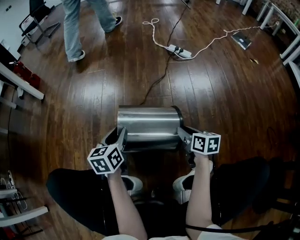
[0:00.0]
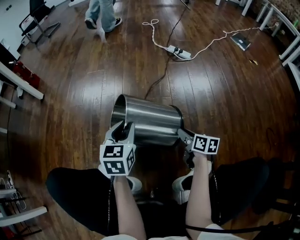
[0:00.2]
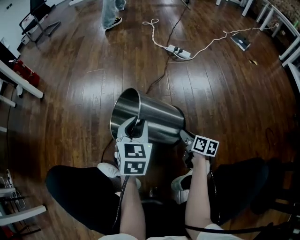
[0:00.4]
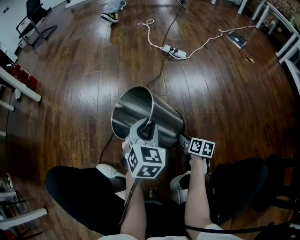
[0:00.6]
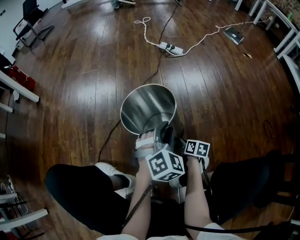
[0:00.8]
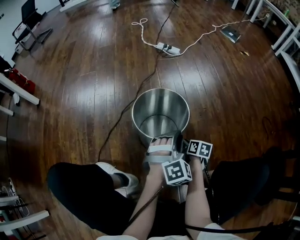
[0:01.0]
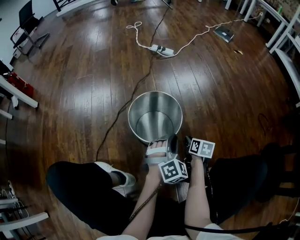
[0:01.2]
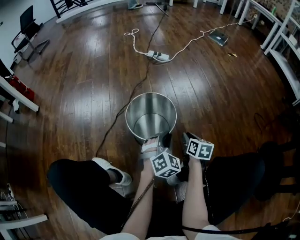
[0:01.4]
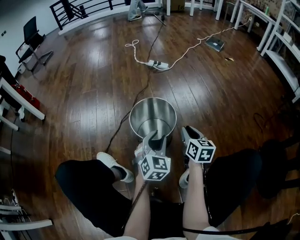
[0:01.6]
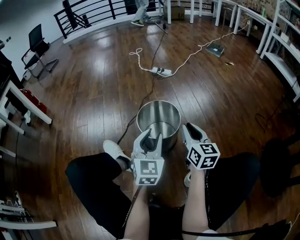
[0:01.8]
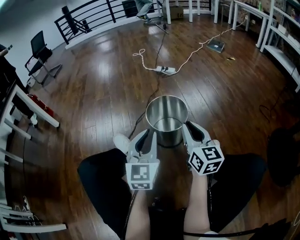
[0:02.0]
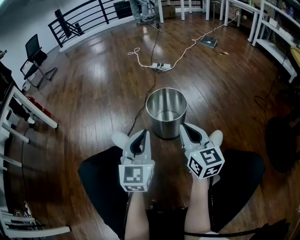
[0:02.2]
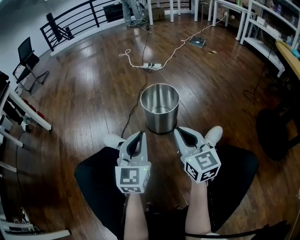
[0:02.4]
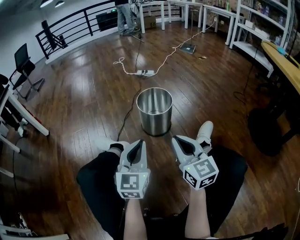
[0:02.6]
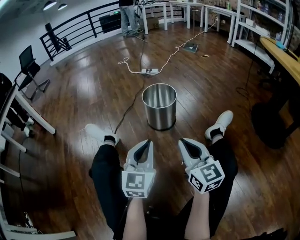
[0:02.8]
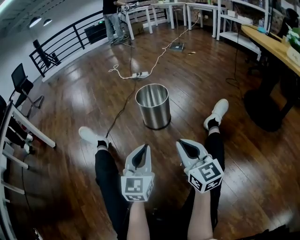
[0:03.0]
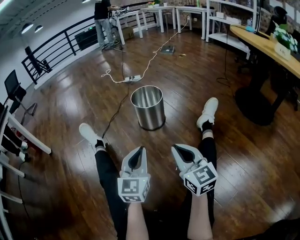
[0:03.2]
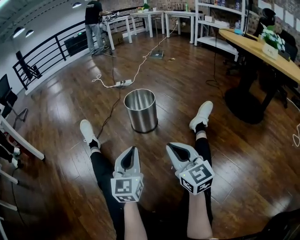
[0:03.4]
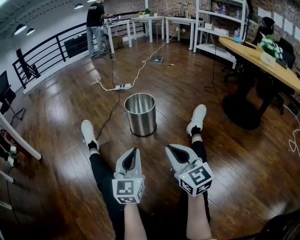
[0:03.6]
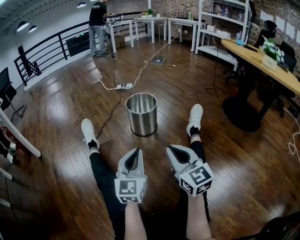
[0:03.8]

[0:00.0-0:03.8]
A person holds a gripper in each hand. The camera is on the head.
0.0 to 1.2 s: The right gripper heads to the right, backward and downward, covering approximately 20 cm, and turns by approximately 30 degrees. Meanwhile the left gripper is displaced to the right and backward by approximately 30 cm, and twists about 80 degrees clockwise, seen from behind.
1.2 to 2.6 s: The left gripper shifts roughly 40 cm backward, upward and to the left, and angles its fingers upward, by roughly 30 degrees. Meanwhile the right gripper goes about 50 cm upward, backward and to the left, and points its fingers about 50 degrees further upward.
2.6 to 3.8 s: The left gripper moves backward and to the left, about 15 cm. Meanwhile the right gripper travels backward by about 15 cm.

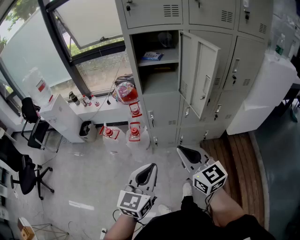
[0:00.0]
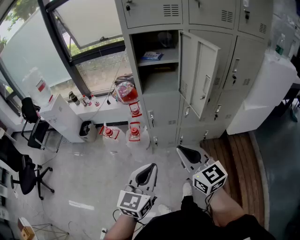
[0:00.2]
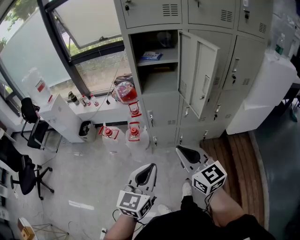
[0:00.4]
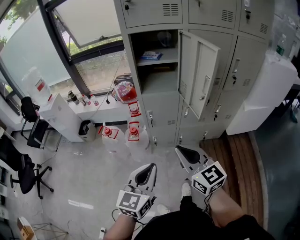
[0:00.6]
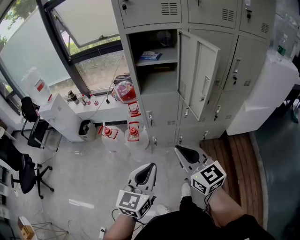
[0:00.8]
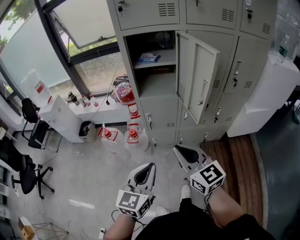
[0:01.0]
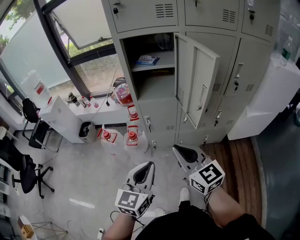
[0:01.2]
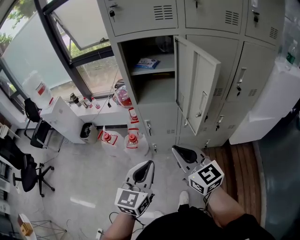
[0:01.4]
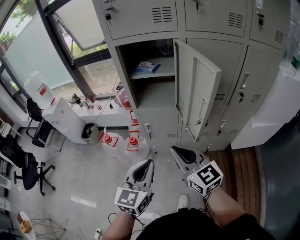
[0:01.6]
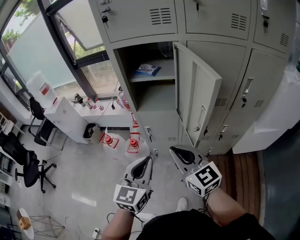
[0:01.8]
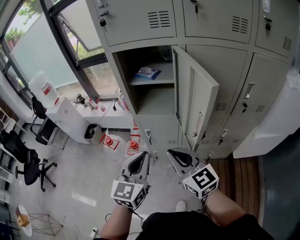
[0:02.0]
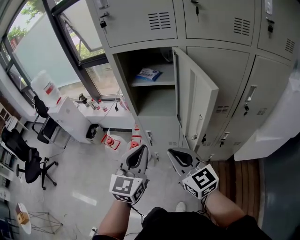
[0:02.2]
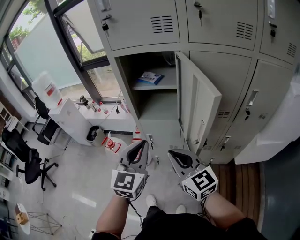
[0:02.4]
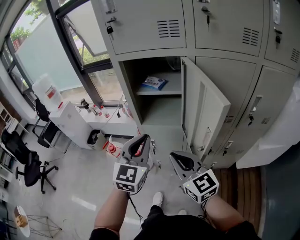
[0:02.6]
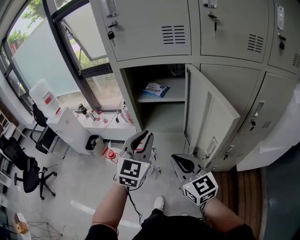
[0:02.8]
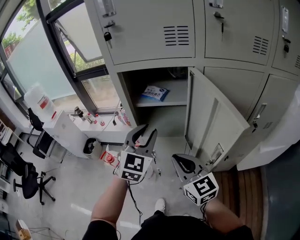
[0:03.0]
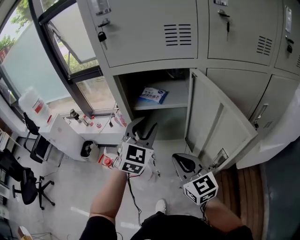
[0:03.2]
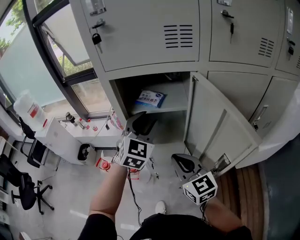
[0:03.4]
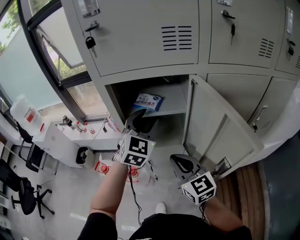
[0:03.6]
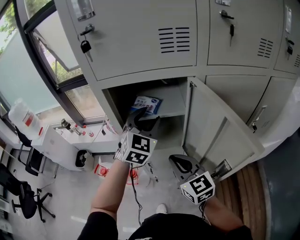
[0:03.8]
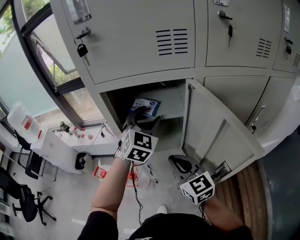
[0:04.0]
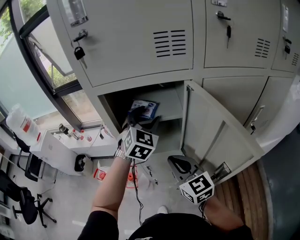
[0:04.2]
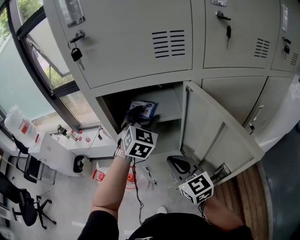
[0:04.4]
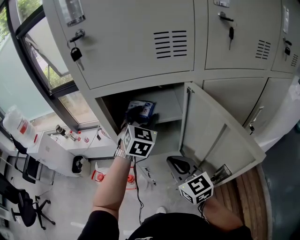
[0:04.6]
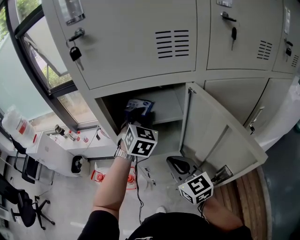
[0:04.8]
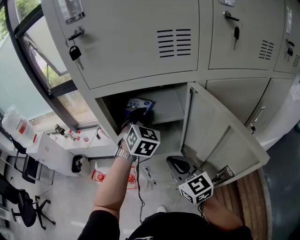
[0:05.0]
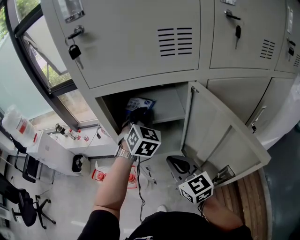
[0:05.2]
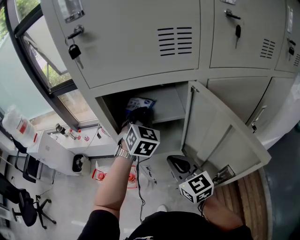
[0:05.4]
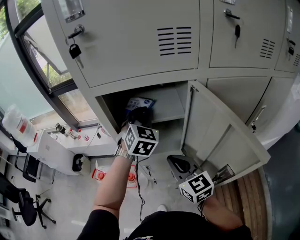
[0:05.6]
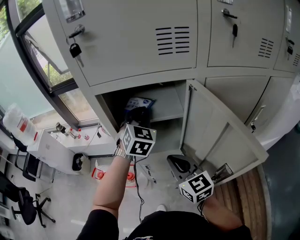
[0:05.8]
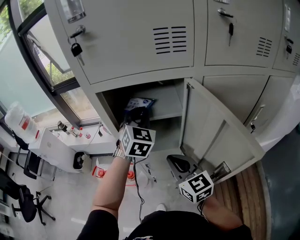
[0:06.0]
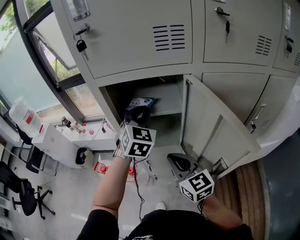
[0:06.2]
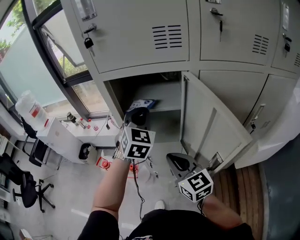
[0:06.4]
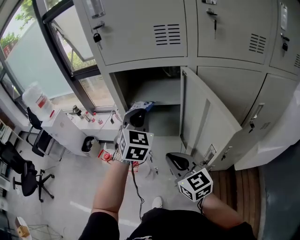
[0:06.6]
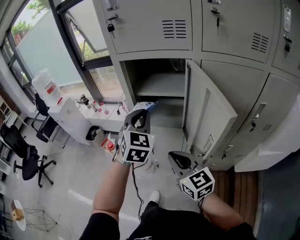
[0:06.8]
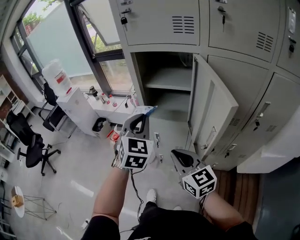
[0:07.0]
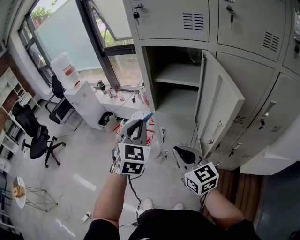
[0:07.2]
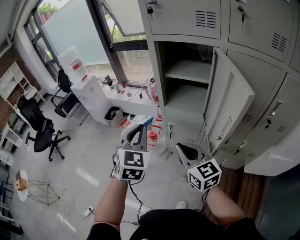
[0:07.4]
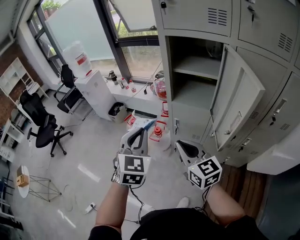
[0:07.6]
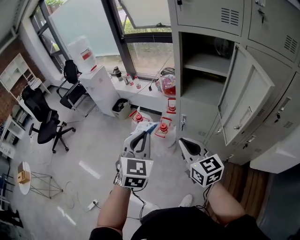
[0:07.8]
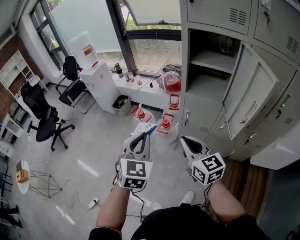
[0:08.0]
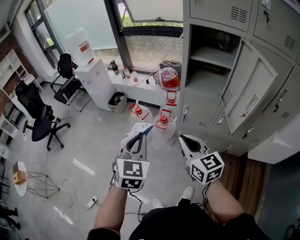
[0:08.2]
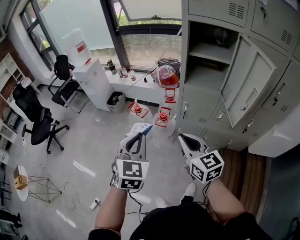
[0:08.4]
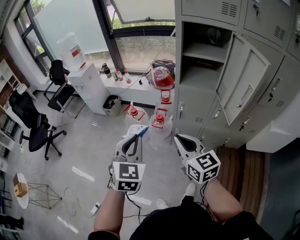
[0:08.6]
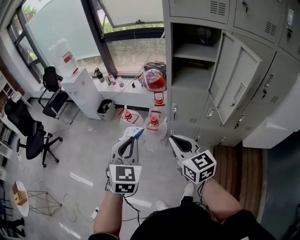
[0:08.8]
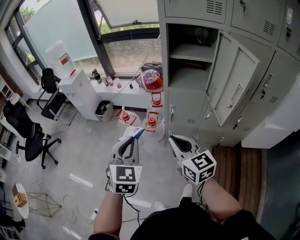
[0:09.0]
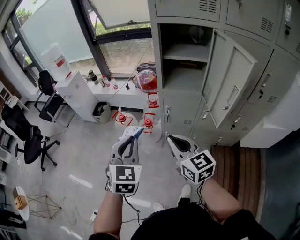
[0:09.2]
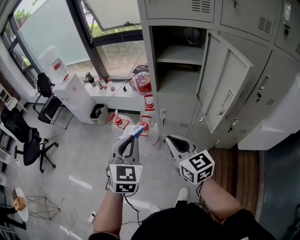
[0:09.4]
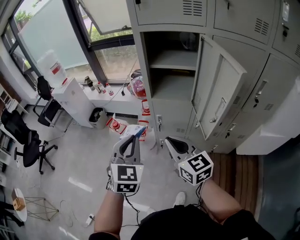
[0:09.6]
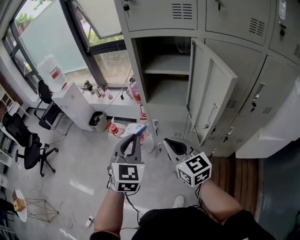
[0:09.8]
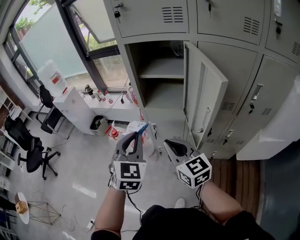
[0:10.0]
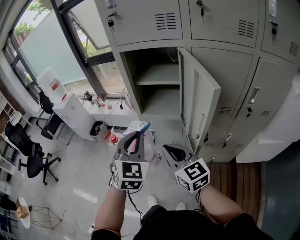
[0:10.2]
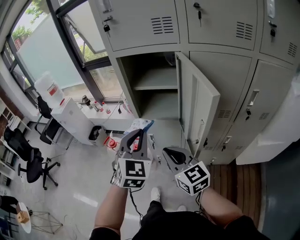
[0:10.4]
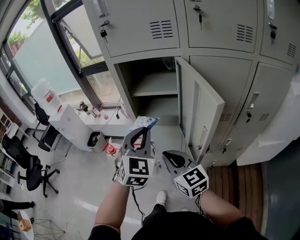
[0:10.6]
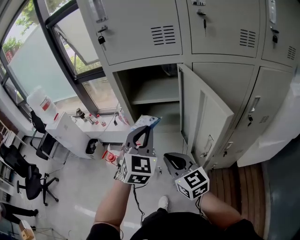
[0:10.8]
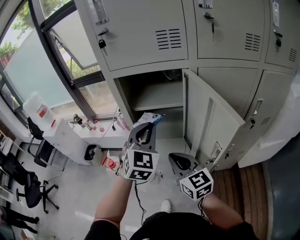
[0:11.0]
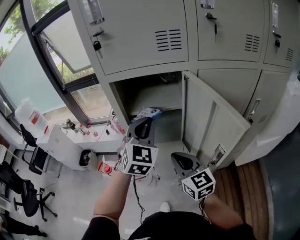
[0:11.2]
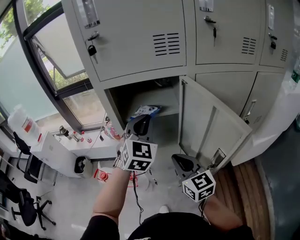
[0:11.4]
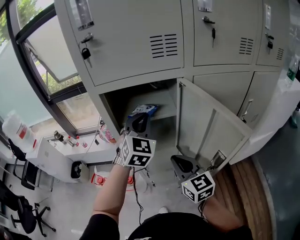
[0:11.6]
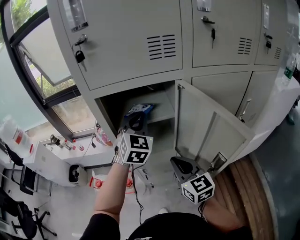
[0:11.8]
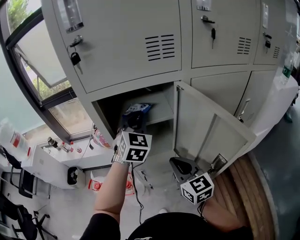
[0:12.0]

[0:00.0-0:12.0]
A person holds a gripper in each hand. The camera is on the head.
0.0 to 1.6 s: The grippers both shift forward and to the right by about 15 cm.
1.6 to 3.0 s: The left gripper goes approximately 25 cm forward, turns by some 30 degrees, and opens. The right gripper heads forward, covering some 15 cm.
3.0 to 4.4 s: The right gripper moves forward, about 10 cm, while the left gripper shifts some 20 cm forward, and opens.
4.4 to 6.0 s: The left gripper closes up.
6.0 to 7.6 s: The right gripper goes approximately 20 cm backward and to the left, and swivels about 20 degrees; the left gripper moves backward and to the left, about 40 cm, and turns by approximately 30 degrees.
7.6 to 9.0 s: The right gripper is displaced to the left by approximately 10 cm, while the left gripper is displaced to the left and backward by roughly 10 cm.
9.0 to 10.4 s: The left gripper is displaced to the right and forward by some 30 cm. The right gripper goes roughly 15 cm to the right.
10.4 to 12.0 s: The right gripper is displaced forward by roughly 15 cm, and swivels roughly 30 degrees. The left gripper goes roughly 30 cm forward.

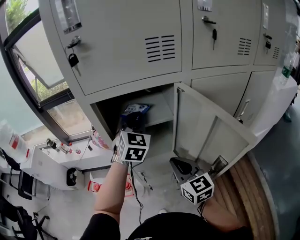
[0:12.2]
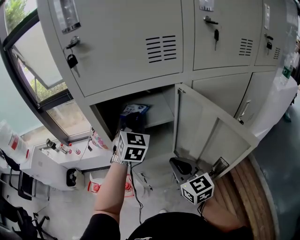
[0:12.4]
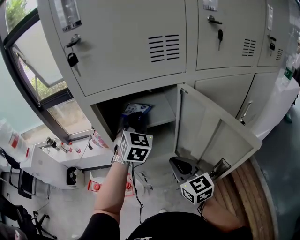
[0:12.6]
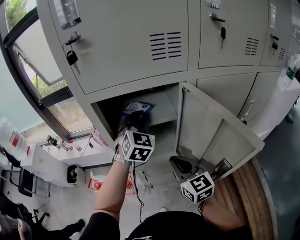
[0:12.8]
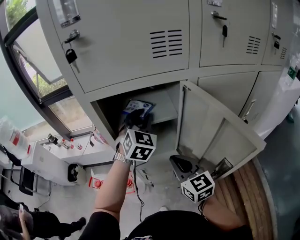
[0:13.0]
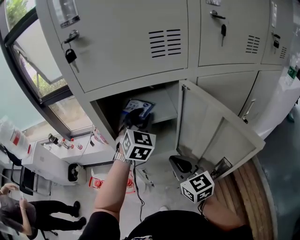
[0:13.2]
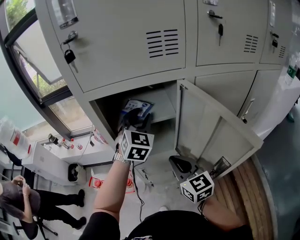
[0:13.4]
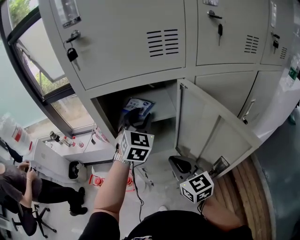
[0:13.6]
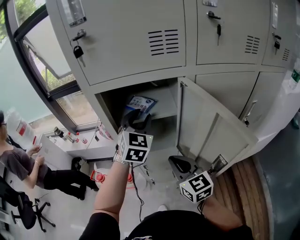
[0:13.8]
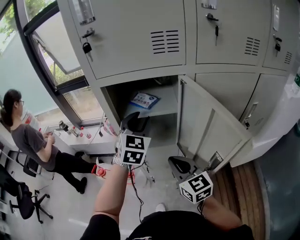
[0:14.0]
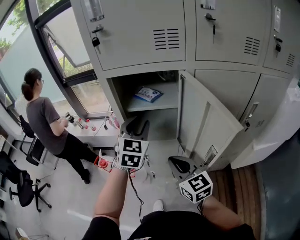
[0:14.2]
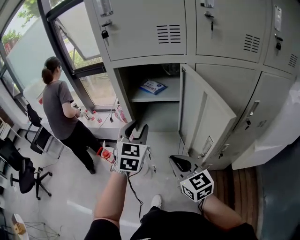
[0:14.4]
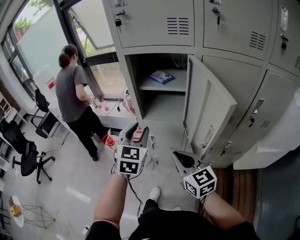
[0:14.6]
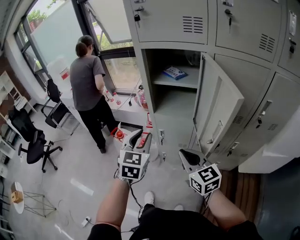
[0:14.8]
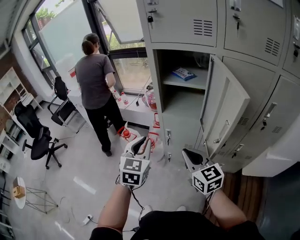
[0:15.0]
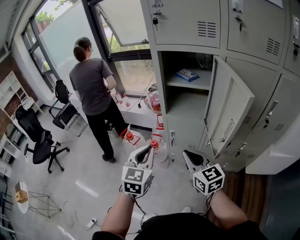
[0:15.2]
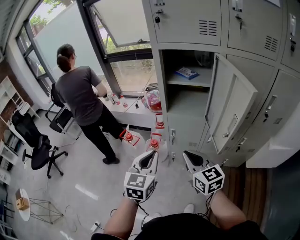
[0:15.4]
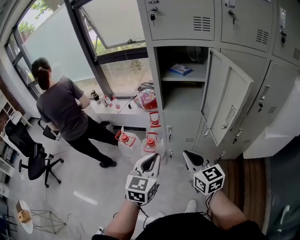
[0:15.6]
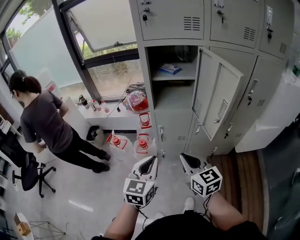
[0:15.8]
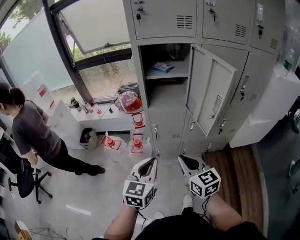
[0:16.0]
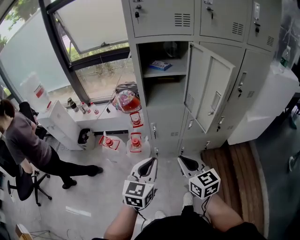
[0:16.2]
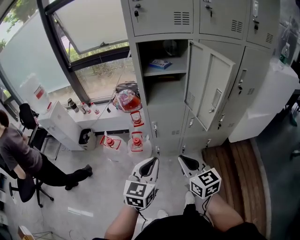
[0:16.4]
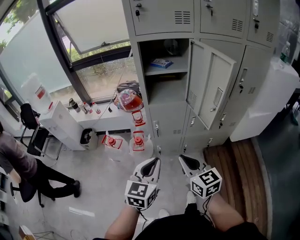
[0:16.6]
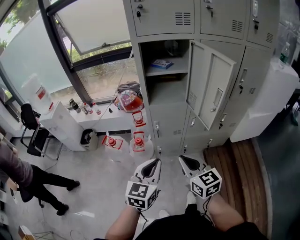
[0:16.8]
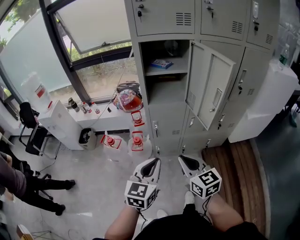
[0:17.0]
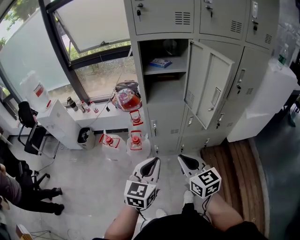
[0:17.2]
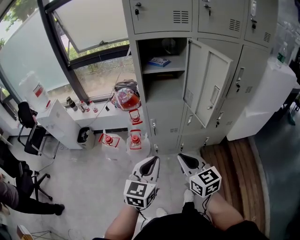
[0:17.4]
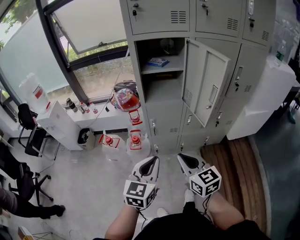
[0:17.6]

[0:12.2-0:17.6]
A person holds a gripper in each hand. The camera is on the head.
12.2 to 13.6 s: The left gripper opens up.
13.6 to 15.0 s: The left gripper heads backward and to the left, covering roughly 35 cm, turns by some 30 degrees, and closes up; the right gripper shifts some 15 cm backward, and turns by about 20 degrees.
15.0 to 16.2 s: The right gripper is displaced backward and to the left by about 10 cm, and changes its angle by roughly 20 degrees, while the left gripper moves backward, some 10 cm, and turns by some 30 degrees.
16.2 to 17.6 s: The grippers stay close to where they were, moving slightly.

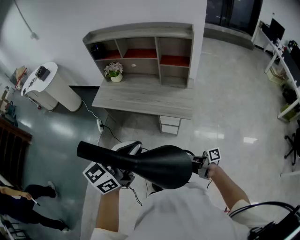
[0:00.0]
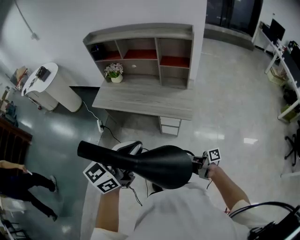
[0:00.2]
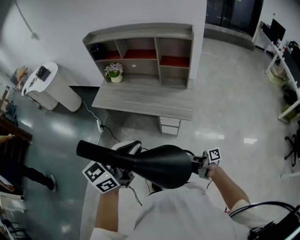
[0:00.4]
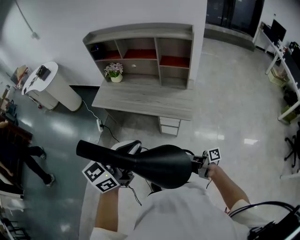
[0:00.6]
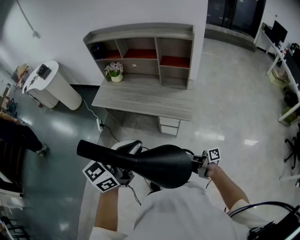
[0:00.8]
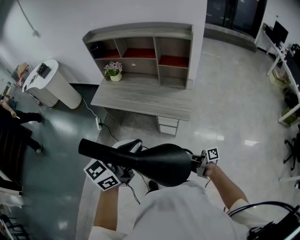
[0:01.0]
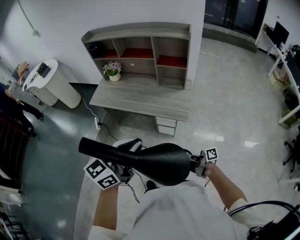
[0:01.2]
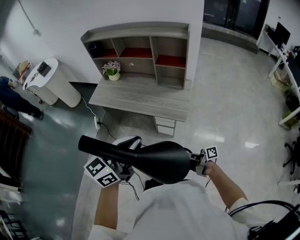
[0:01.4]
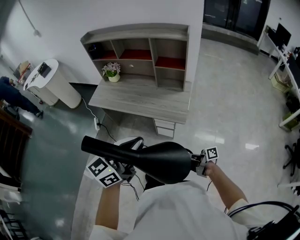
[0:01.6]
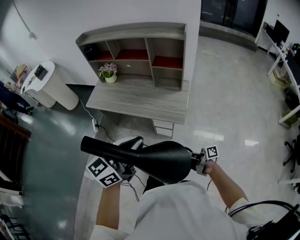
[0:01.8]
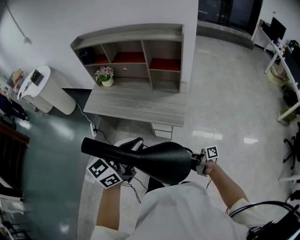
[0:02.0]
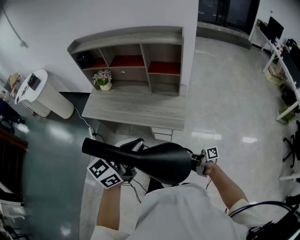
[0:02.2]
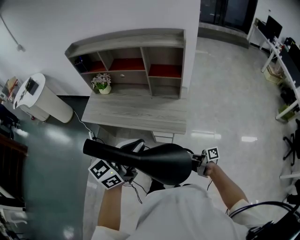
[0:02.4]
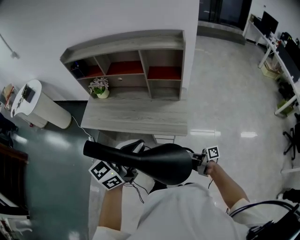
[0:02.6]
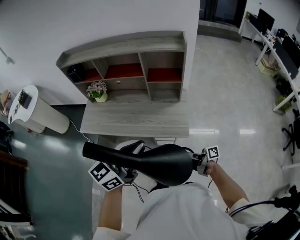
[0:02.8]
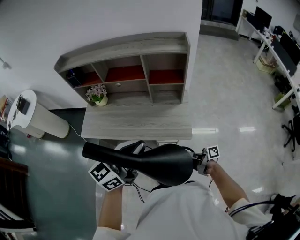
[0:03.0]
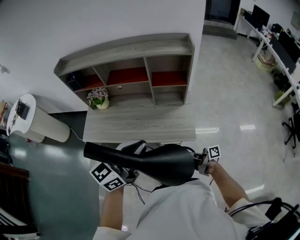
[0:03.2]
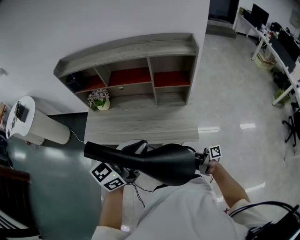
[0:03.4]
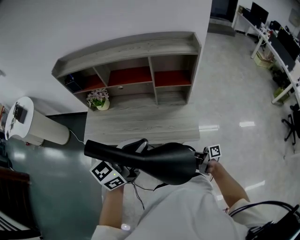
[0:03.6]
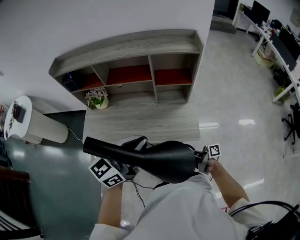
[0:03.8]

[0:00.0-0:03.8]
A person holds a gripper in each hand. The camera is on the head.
0.0 to 1.2 s: The left gripper shifts by about 5 cm.
1.2 to 2.6 s: The left gripper changes place by about 15 cm.
2.6 to 3.8 s: The left gripper ends up roughly 15 cm from where it was.
